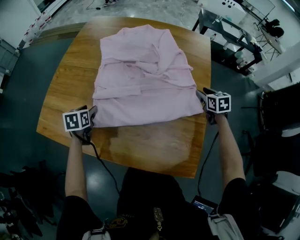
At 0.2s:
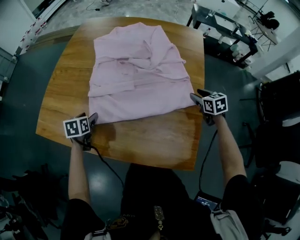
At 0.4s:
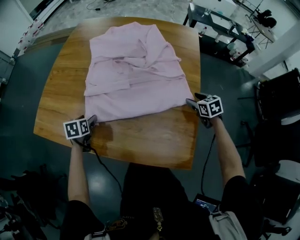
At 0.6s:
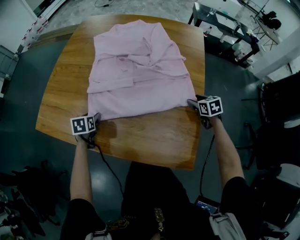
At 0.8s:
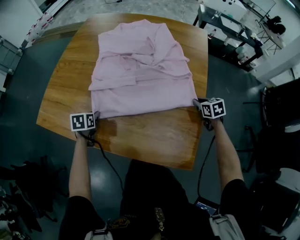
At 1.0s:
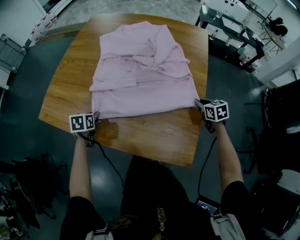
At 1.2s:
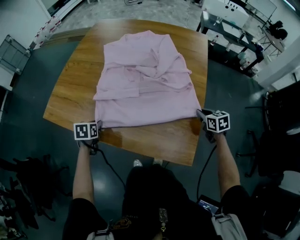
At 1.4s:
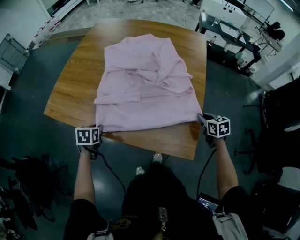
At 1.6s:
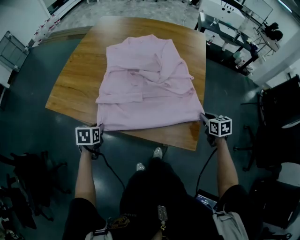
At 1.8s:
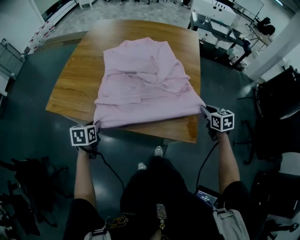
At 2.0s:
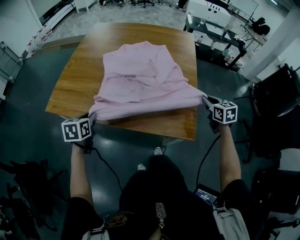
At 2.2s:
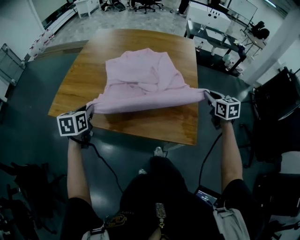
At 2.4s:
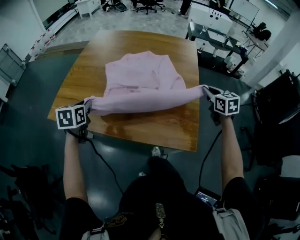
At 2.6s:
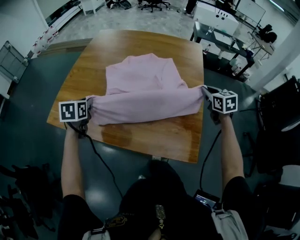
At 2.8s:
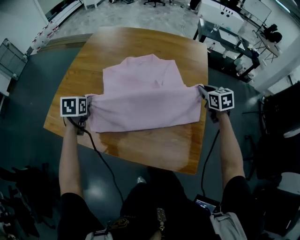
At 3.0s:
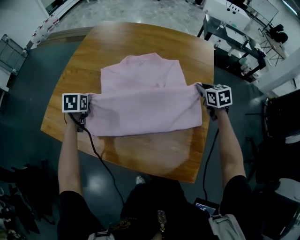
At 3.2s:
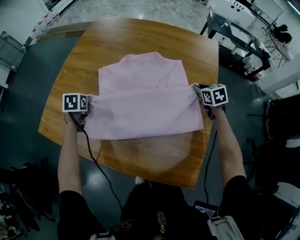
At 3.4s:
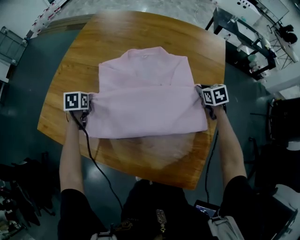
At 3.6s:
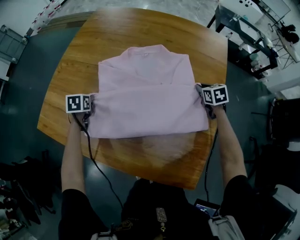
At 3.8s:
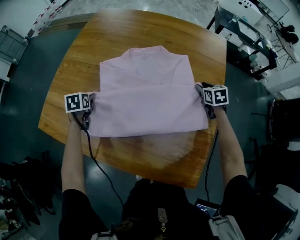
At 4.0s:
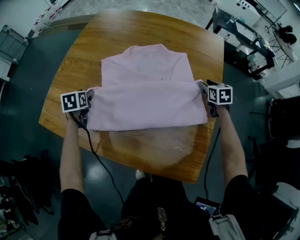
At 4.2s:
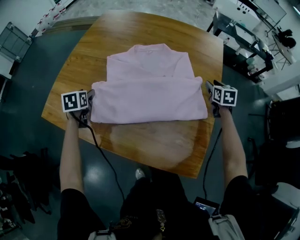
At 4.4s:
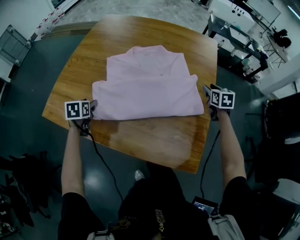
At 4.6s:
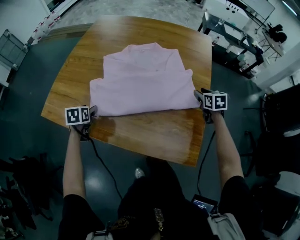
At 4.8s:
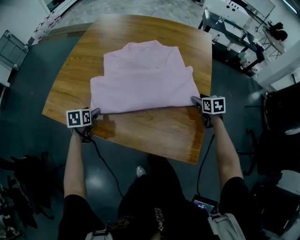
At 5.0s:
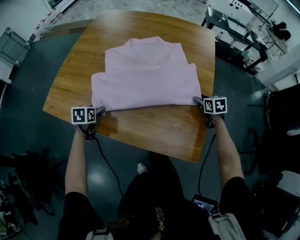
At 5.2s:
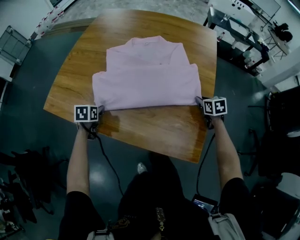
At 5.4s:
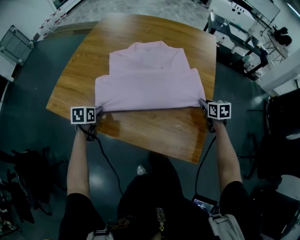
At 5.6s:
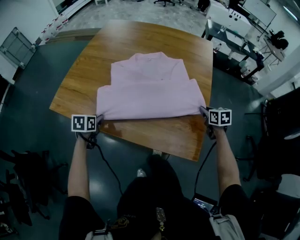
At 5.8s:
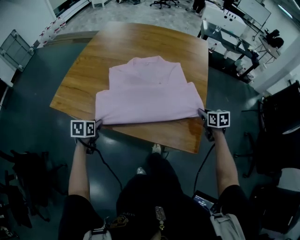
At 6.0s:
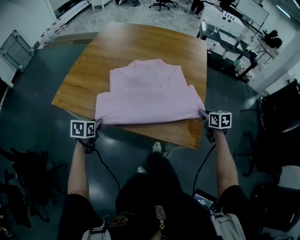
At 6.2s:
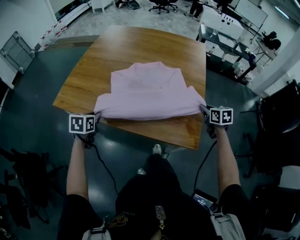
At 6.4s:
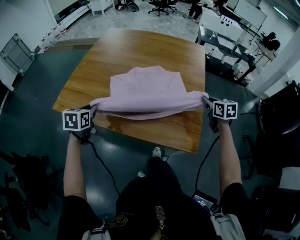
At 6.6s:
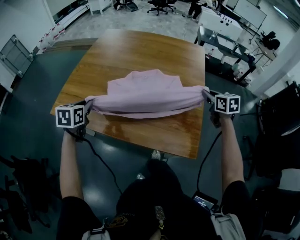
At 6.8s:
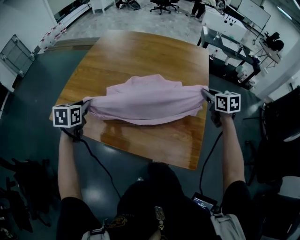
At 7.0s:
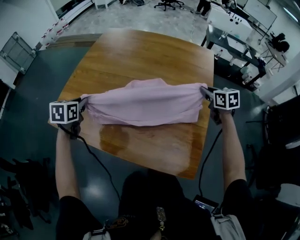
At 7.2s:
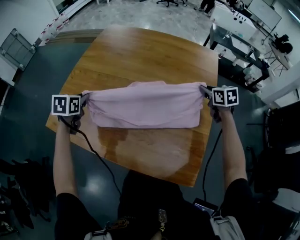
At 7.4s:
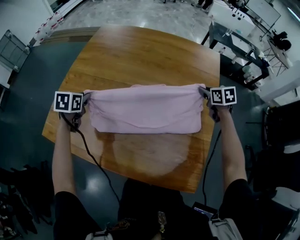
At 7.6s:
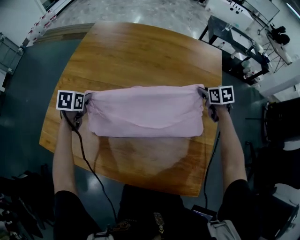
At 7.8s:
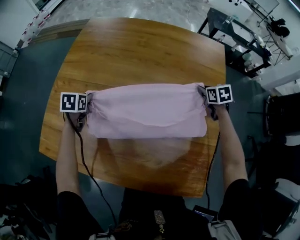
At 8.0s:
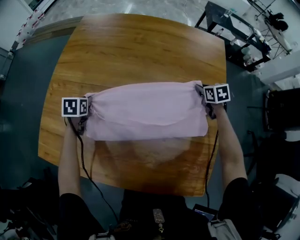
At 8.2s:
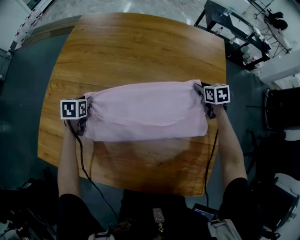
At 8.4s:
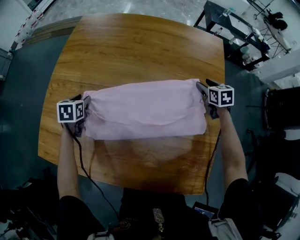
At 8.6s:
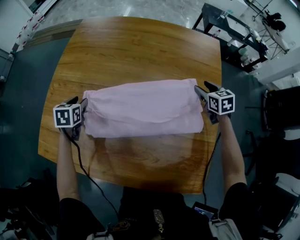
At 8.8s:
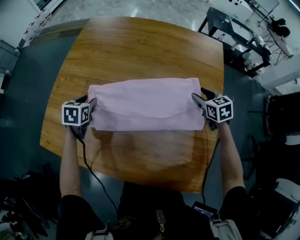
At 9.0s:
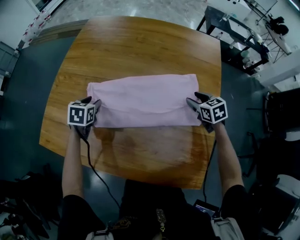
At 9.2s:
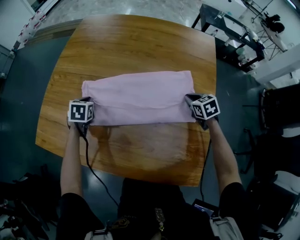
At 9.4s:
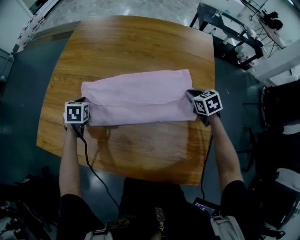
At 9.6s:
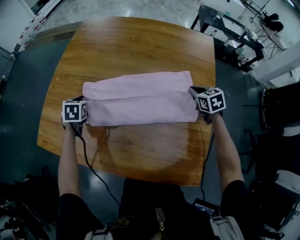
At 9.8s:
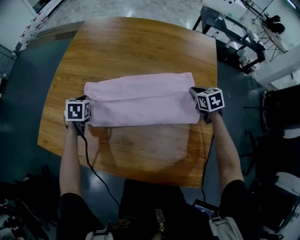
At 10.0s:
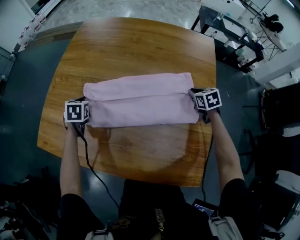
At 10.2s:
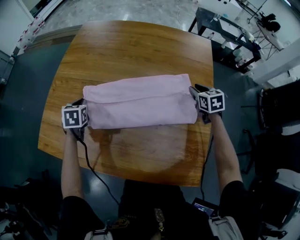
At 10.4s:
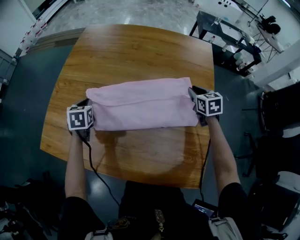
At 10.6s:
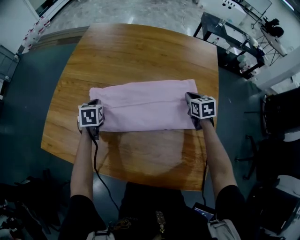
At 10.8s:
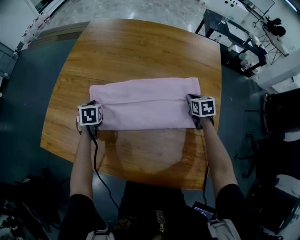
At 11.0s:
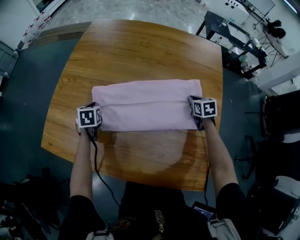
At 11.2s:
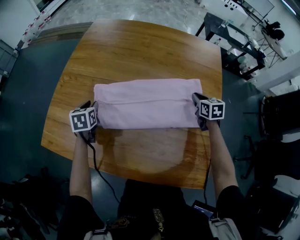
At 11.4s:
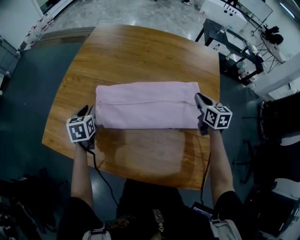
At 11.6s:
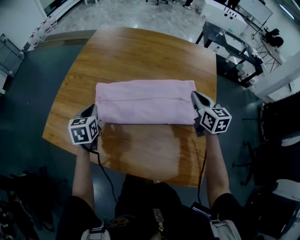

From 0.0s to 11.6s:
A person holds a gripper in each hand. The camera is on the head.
From 0.0s to 1.4s: Both grippers travel together backward, some 20 cm. The left gripper closes. The right gripper closes up.
From 1.4s to 2.8s: The two grippers go some 25 cm forward and upward.
From 2.8s to 4.4s: The two grippers go roughly 10 cm downward. The right gripper opens its fingers. The left gripper opens.
From 4.4s to 5.8s: The two grippers go approximately 20 cm backward. The left gripper closes up. The right gripper closes.
From 5.8s to 7.2s: The right gripper shifts roughly 25 cm forward, while the left gripper shifts some 30 cm forward and upward.
From 7.2s to 8.8s: The left gripper moves forward and downward, some 15 cm, and opens up, while the right gripper moves downward, approximately 5 cm, and opens up.
From 8.8s to 10.2s: The left gripper closes up, while the right gripper closes its fingers.
From 10.2s to 11.6s: The left gripper shifts roughly 10 cm backward and upward, and opens and closes again. Meanwhile the right gripper is displaced upward, to the left and backward by approximately 15 cm, rotates roughly 20 degrees, and closes up.

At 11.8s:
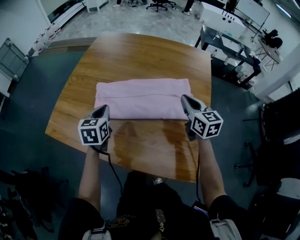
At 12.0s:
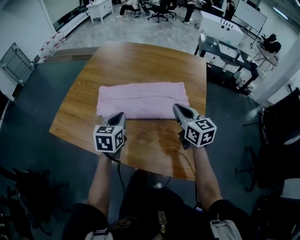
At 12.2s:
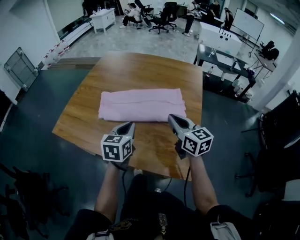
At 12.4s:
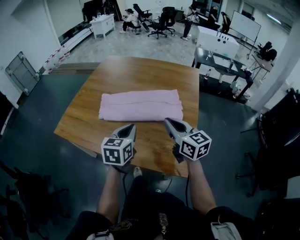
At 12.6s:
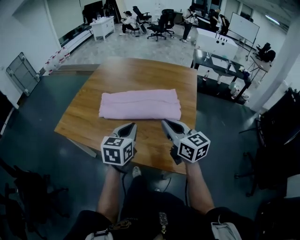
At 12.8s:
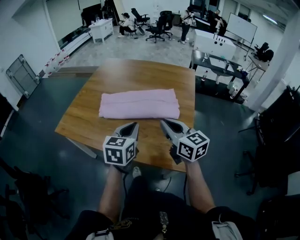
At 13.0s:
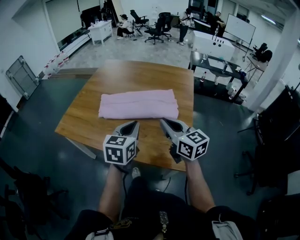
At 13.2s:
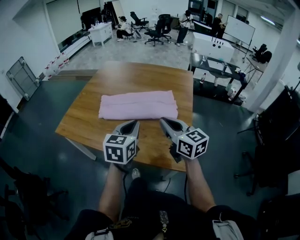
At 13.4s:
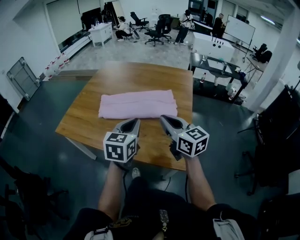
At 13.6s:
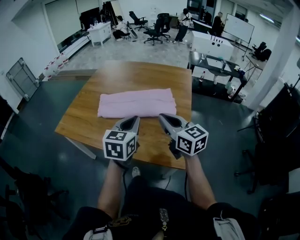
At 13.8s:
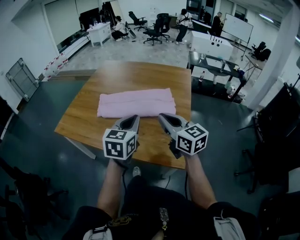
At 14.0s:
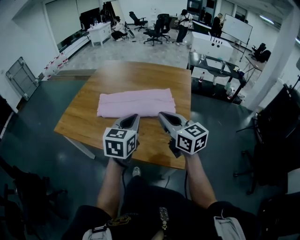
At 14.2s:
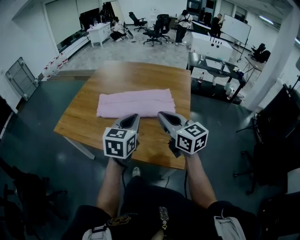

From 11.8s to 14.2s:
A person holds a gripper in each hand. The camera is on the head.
From 11.8s to 13.0s: The left gripper shifts roughly 30 cm backward, to the right and upward. The right gripper goes approximately 25 cm backward and upward.
From 13.0s to 14.2s: There are only small adjustments of the grippers.

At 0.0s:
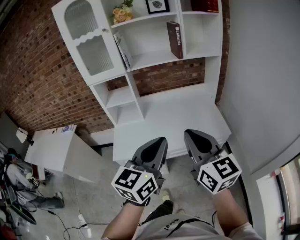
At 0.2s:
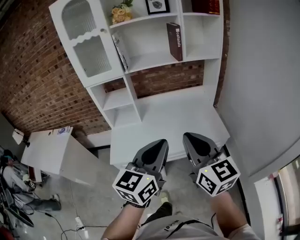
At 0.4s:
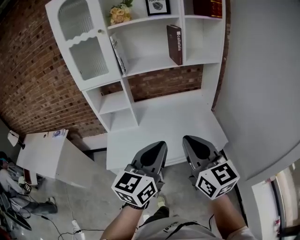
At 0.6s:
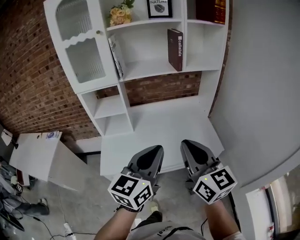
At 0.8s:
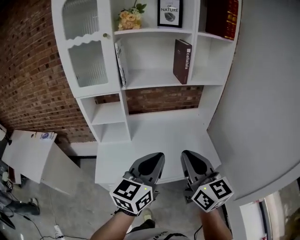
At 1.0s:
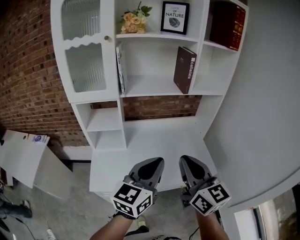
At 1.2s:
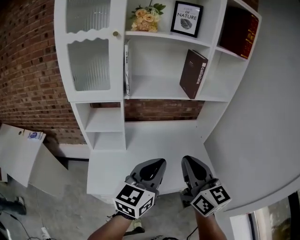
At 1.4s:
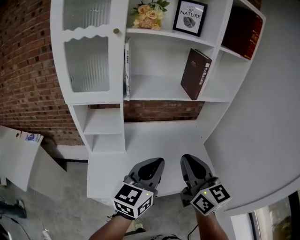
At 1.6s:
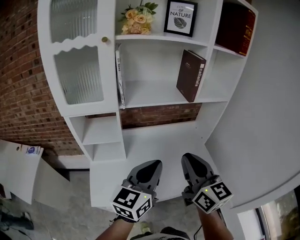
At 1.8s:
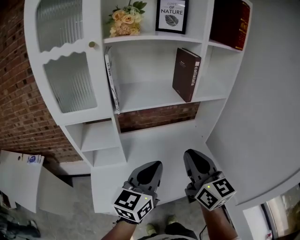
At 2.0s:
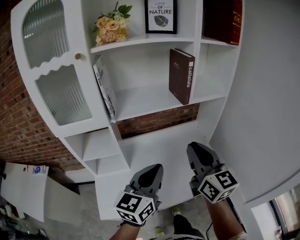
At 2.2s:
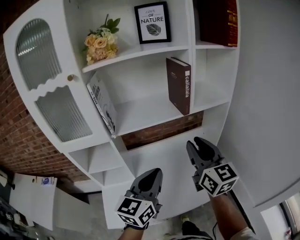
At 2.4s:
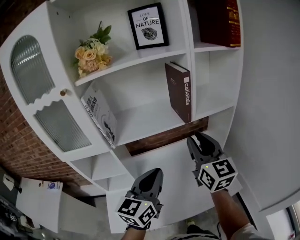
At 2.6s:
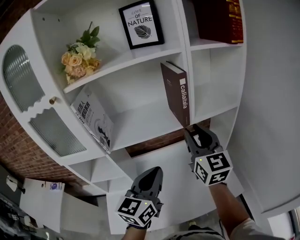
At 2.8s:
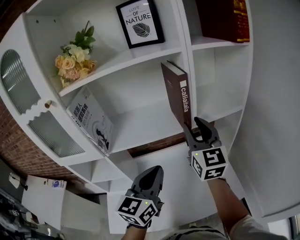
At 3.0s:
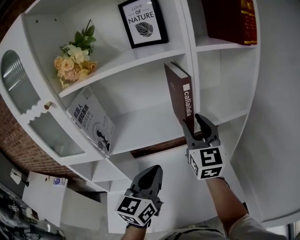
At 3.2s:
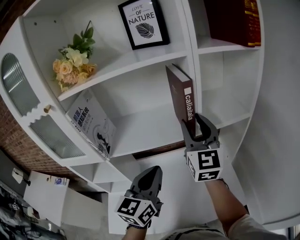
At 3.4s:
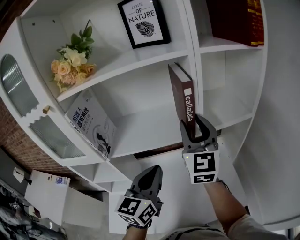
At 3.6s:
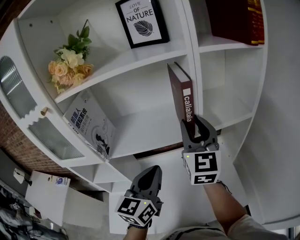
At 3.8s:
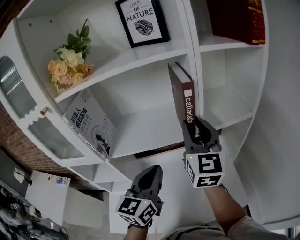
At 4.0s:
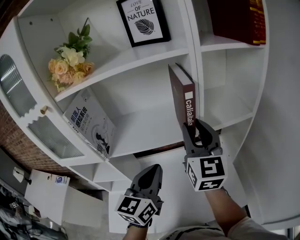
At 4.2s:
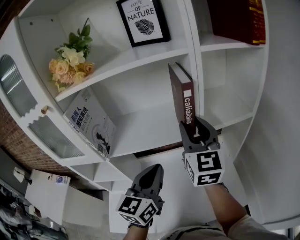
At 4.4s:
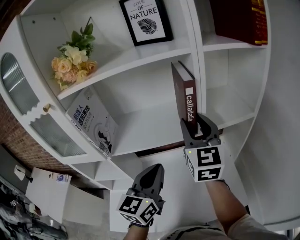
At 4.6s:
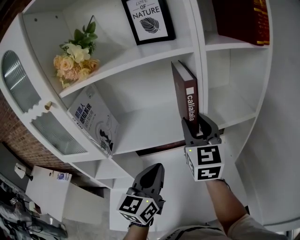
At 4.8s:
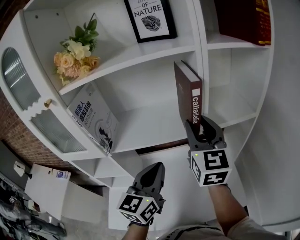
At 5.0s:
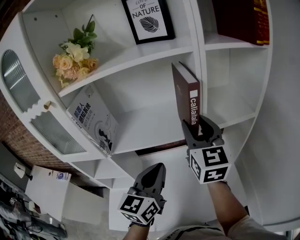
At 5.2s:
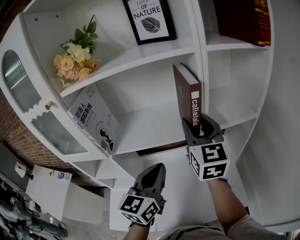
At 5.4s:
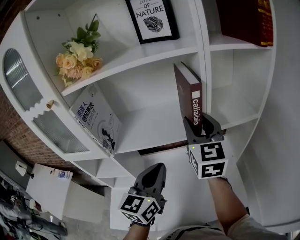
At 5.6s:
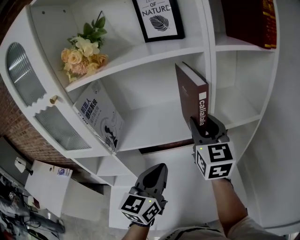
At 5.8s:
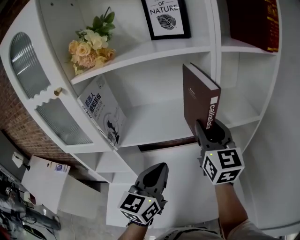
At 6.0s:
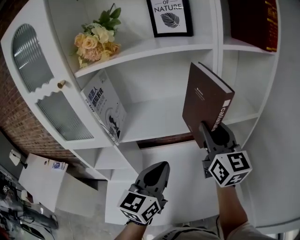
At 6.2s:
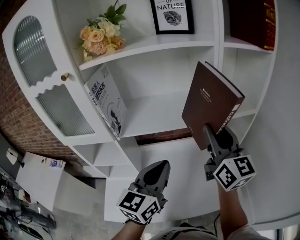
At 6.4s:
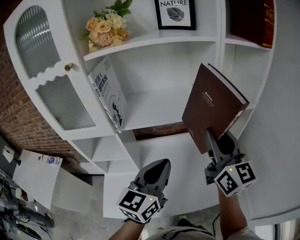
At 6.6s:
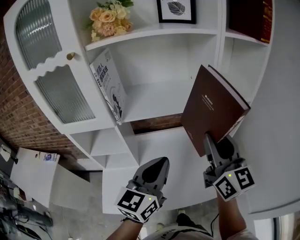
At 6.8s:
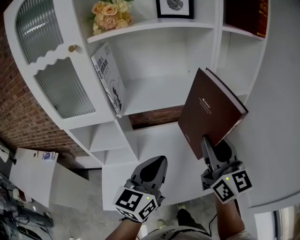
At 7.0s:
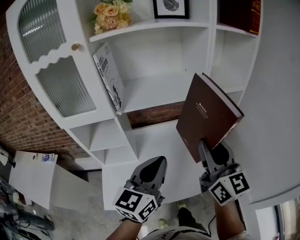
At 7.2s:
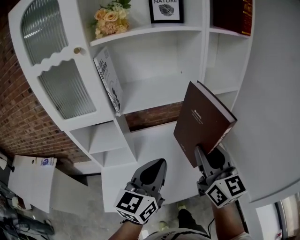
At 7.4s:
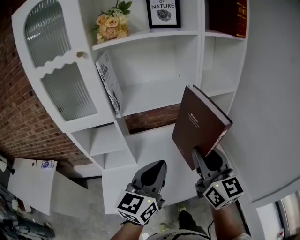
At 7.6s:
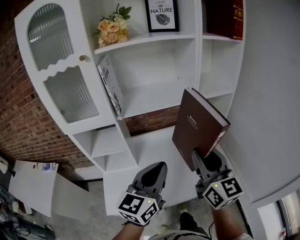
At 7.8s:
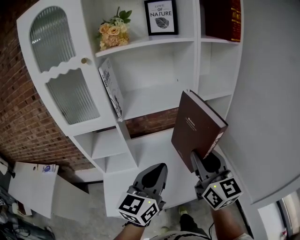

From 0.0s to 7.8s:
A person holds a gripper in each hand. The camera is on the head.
From 0.0s to 1.6s: The left gripper goes about 25 cm forward and to the left, while the right gripper moves forward, roughly 25 cm.
From 1.6s to 3.2s: The right gripper shifts some 35 cm forward, turns by some 20 degrees, and opens up, while the left gripper is displaced forward by some 20 cm.
From 3.2s to 4.6s: The grippers make only small movements.
From 4.6s to 6.2s: The right gripper is displaced backward by roughly 10 cm, while the left gripper shifts some 5 cm backward.
From 6.2s to 7.8s: Both grippers travel together backward, some 20 cm.

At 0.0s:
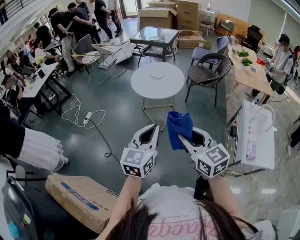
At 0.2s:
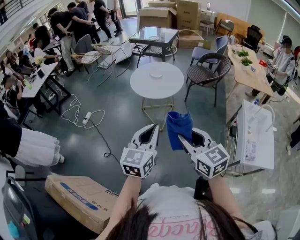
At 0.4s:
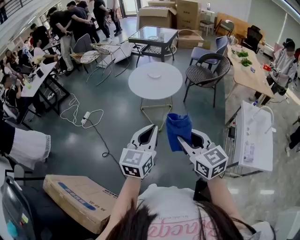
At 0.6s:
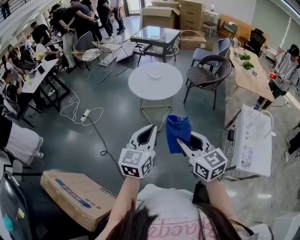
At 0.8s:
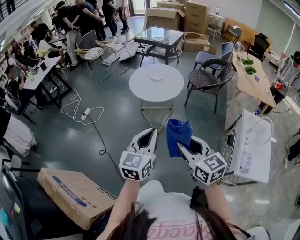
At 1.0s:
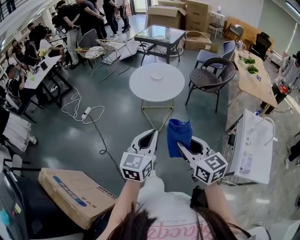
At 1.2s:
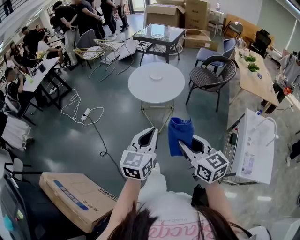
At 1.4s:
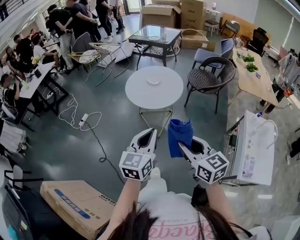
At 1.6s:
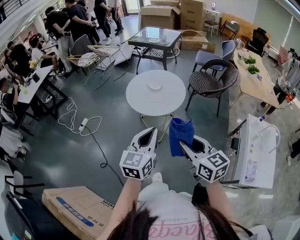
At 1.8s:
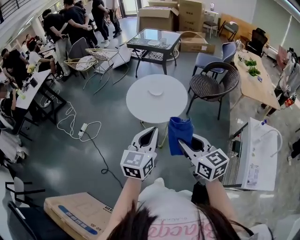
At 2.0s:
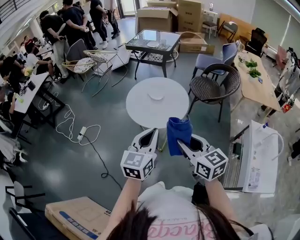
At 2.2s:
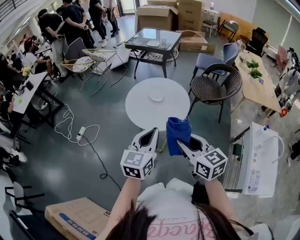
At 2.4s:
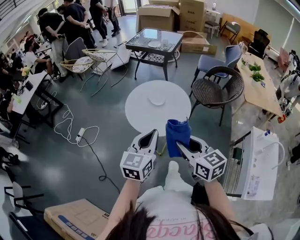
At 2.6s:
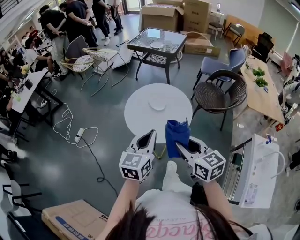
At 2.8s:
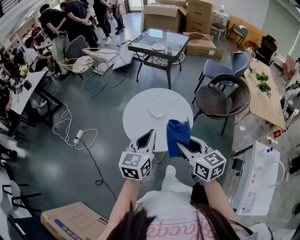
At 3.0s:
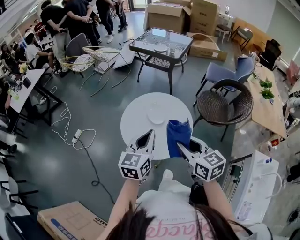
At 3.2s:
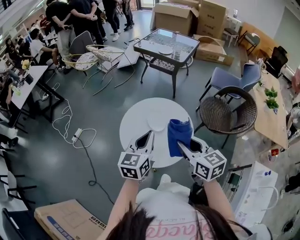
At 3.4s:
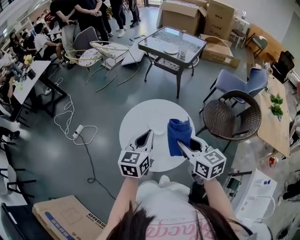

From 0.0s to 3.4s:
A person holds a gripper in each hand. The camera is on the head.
From 0.0s to 1.6s: The two grippers go some 15 cm forward.
From 1.6s to 3.4s: The two grippers travel together, forward, roughly 40 cm.
